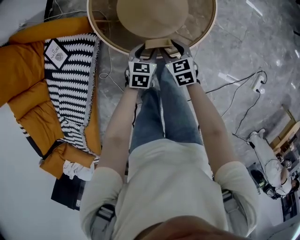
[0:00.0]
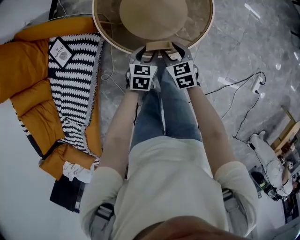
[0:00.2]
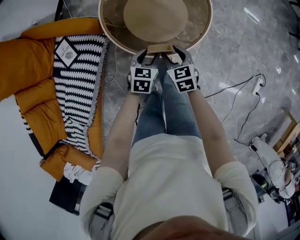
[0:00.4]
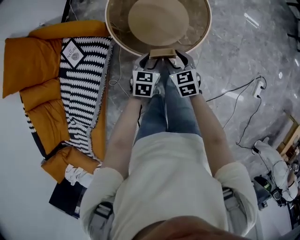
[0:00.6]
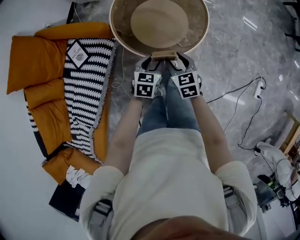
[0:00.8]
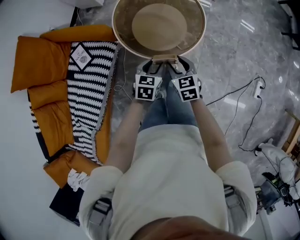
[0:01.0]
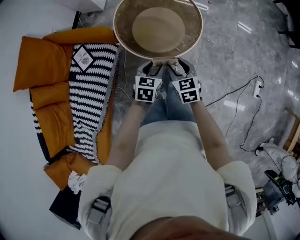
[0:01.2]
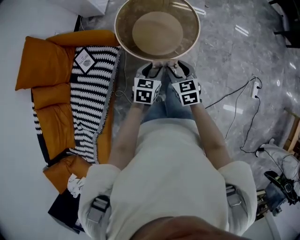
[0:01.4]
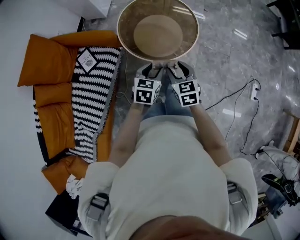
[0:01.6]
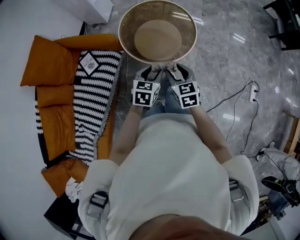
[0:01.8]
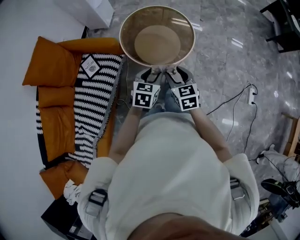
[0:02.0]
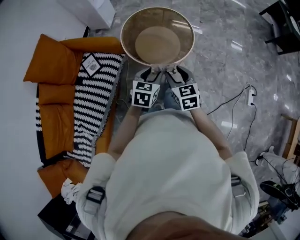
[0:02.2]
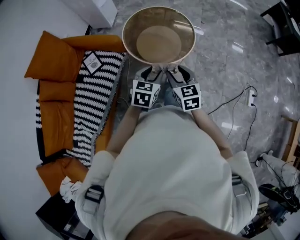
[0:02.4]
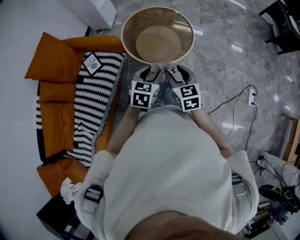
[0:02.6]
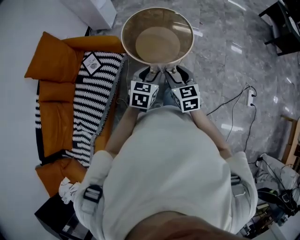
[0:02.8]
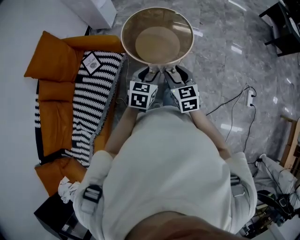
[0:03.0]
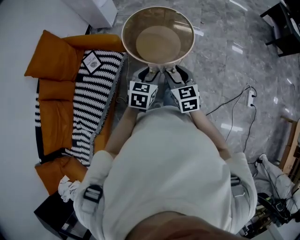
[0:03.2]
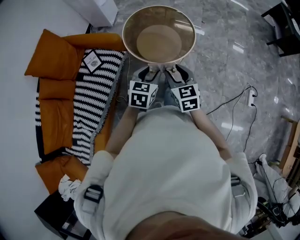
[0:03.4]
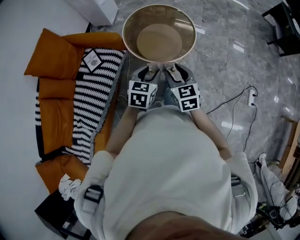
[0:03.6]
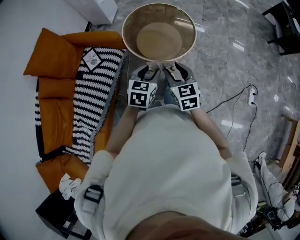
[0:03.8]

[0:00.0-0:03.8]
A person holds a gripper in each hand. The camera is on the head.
0.0 to 1.2 s: Both grippers move upward and backward, some 25 cm.
1.2 to 2.6 s: The two grippers go some 20 cm upward and backward.
2.6 to 3.8 s: Both grippers stay put.

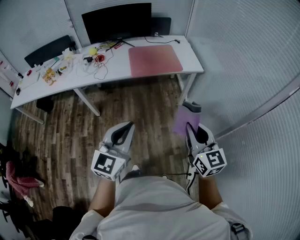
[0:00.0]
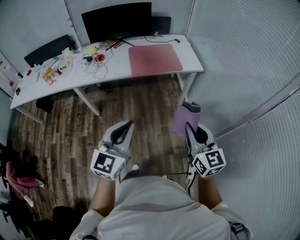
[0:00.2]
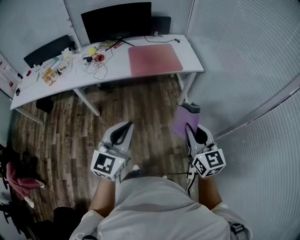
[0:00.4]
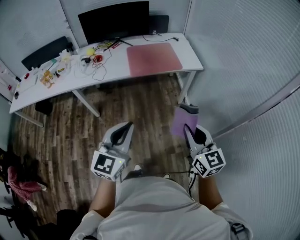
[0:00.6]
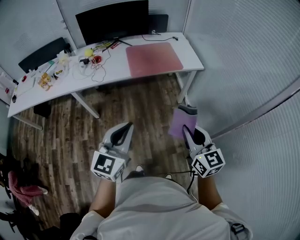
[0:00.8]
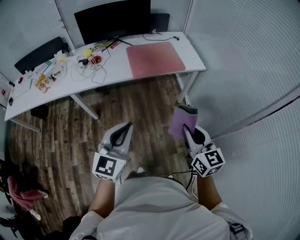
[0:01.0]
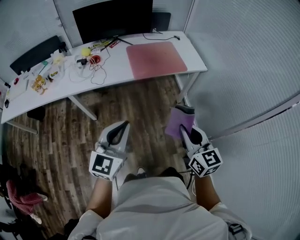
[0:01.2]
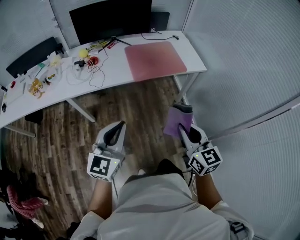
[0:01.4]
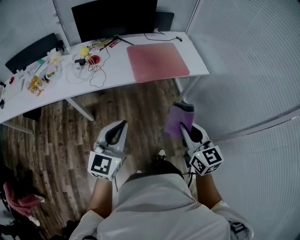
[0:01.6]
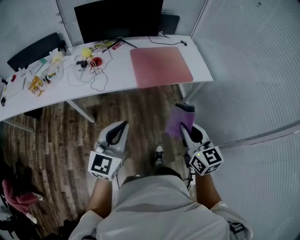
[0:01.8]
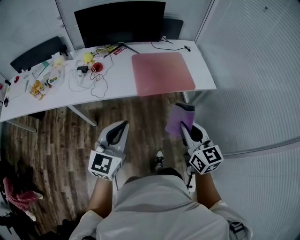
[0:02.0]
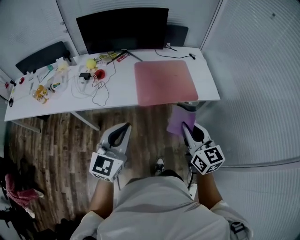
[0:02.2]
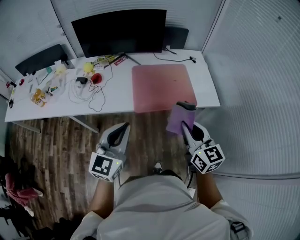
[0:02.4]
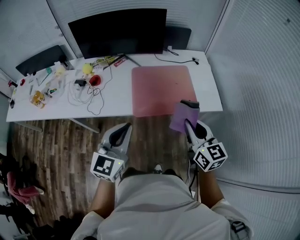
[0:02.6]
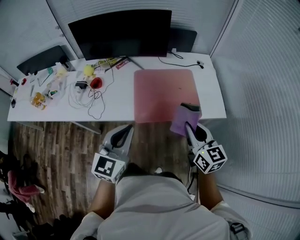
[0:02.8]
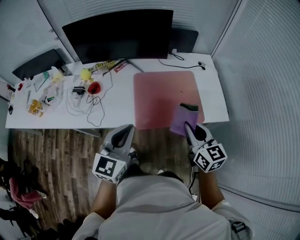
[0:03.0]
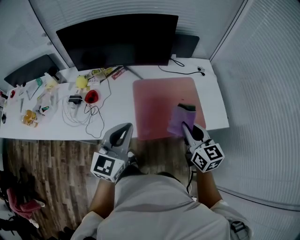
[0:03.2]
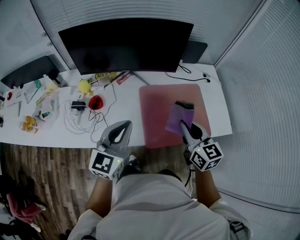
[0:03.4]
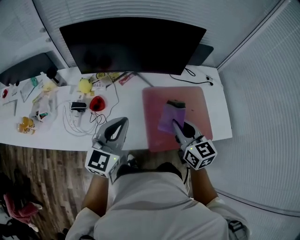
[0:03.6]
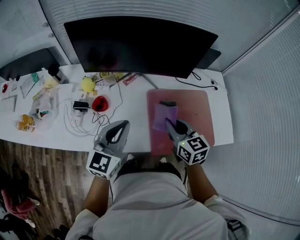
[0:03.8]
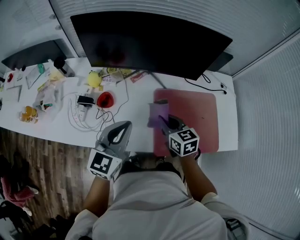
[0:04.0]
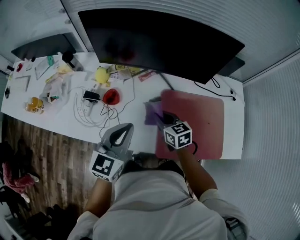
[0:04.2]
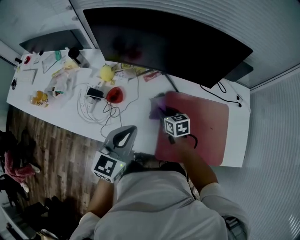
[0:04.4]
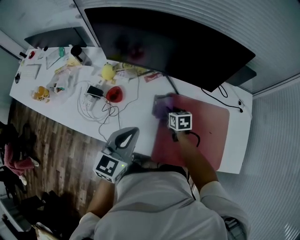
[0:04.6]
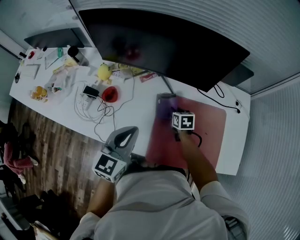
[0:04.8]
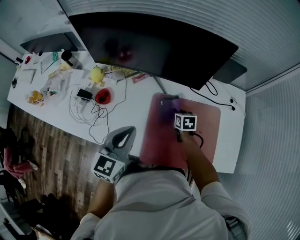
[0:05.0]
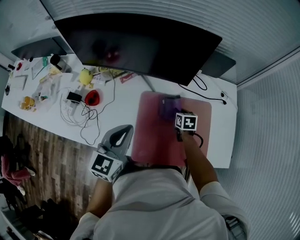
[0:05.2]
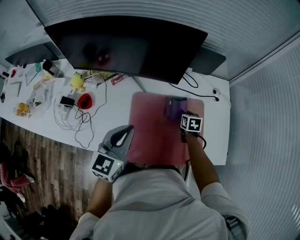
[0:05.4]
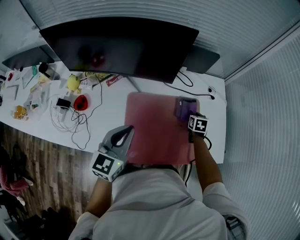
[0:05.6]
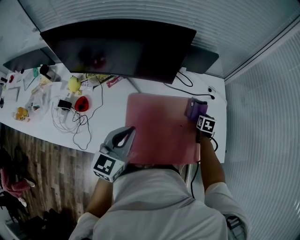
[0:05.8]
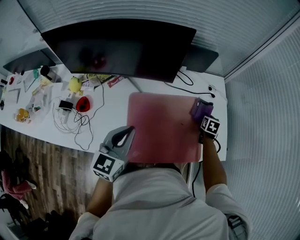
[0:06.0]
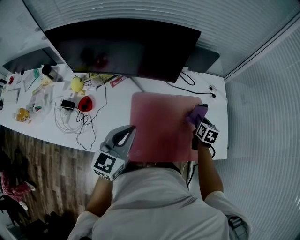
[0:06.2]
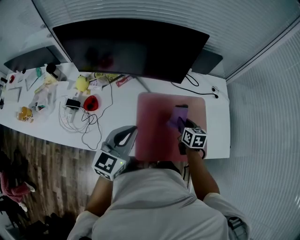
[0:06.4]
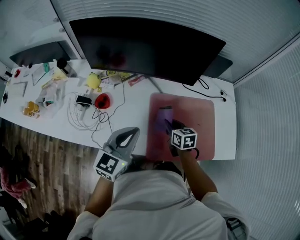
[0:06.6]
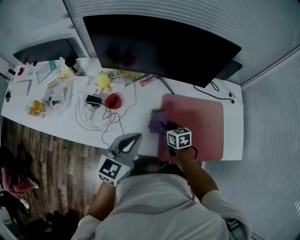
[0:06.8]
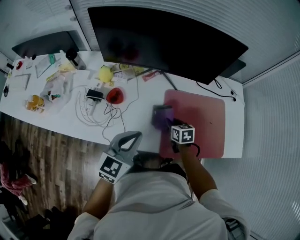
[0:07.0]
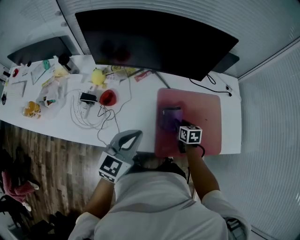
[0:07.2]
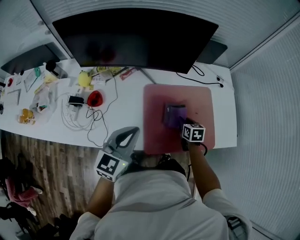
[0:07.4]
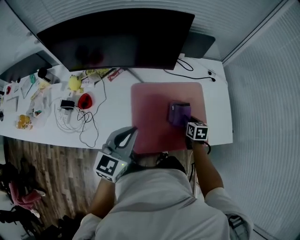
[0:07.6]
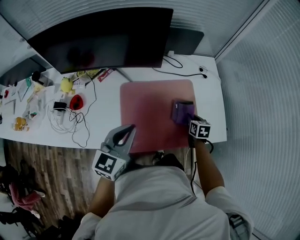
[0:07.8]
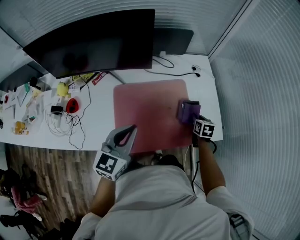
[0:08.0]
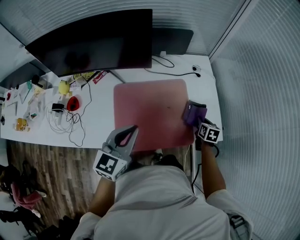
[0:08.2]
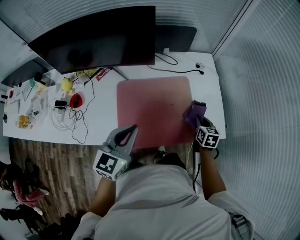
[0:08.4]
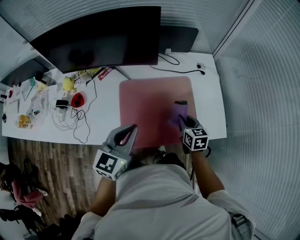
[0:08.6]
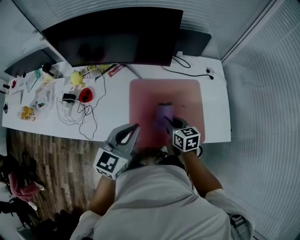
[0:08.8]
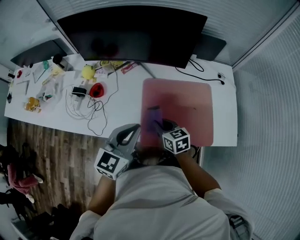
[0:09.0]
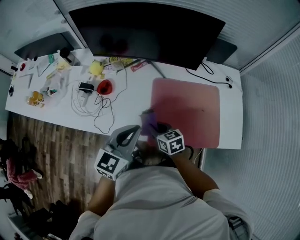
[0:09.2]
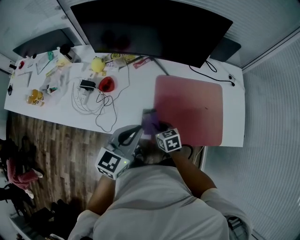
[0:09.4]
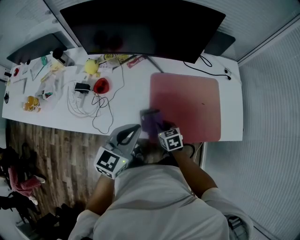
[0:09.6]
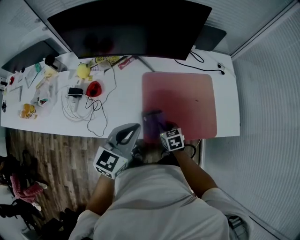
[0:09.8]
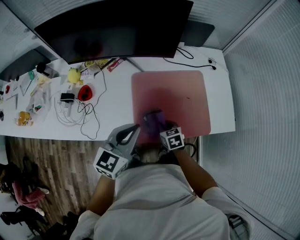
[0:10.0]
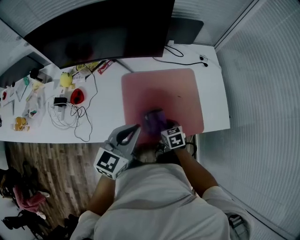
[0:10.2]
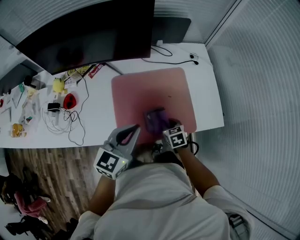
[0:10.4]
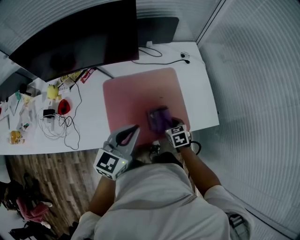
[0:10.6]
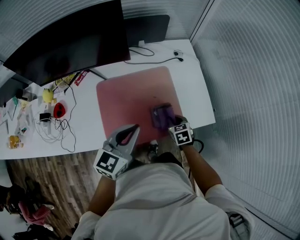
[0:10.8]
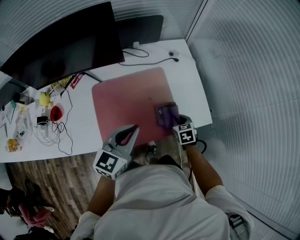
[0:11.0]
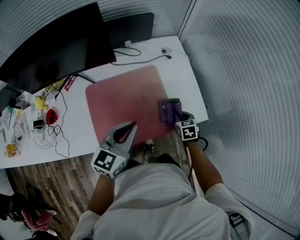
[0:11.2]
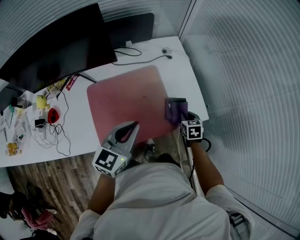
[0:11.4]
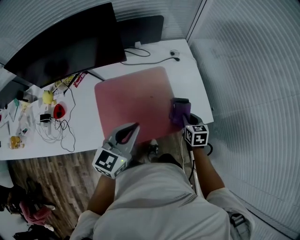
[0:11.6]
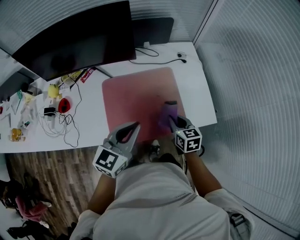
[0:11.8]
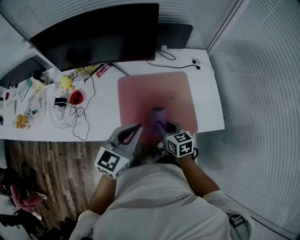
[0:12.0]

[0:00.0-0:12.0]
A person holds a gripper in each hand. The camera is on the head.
0.0 to 1.6 s: Both grippers move to the left and forward, approximately 25 cm.
1.6 to 3.0 s: The two grippers go about 35 cm forward.
3.0 to 4.4 s: The left gripper is displaced forward and to the left by roughly 25 cm, while the right gripper heads forward, to the left and downward, covering approximately 50 cm, and turns by about 30 degrees.
4.4 to 6.0 s: The right gripper moves some 50 cm, and rotates approximately 50 degrees. The left gripper shifts by about 20 cm.
6.0 to 7.6 s: The right gripper goes upward and returns, some 10 cm each way.
7.6 to 9.0 s: The right gripper shifts by roughly 25 cm, and changes its angle by roughly 30 degrees.
9.0 to 10.4 s: The right gripper is displaced to the right and downward by roughly 20 cm, and changes its angle by some 30 degrees. The left gripper heads to the right, covering about 10 cm.
10.4 to 12.0 s: The left gripper moves approximately 10 cm to the right and comes back. Meanwhile the right gripper heads upward, covering roughly 15 cm, travels to the right and back again, some 25 cm each way, and rotates roughly 20 degrees.

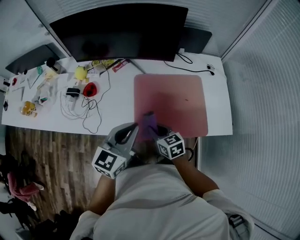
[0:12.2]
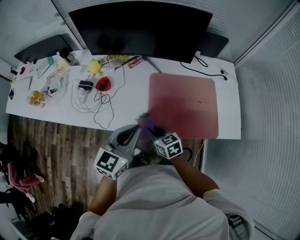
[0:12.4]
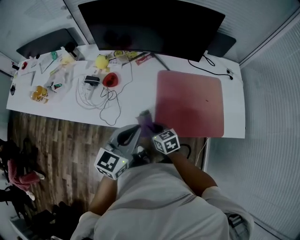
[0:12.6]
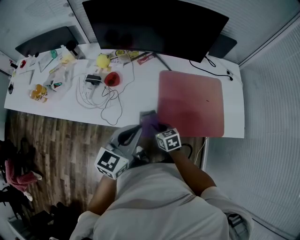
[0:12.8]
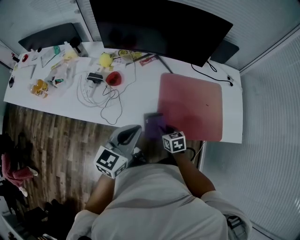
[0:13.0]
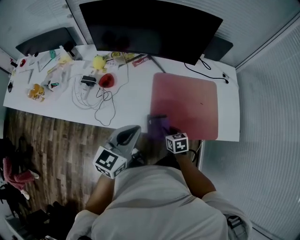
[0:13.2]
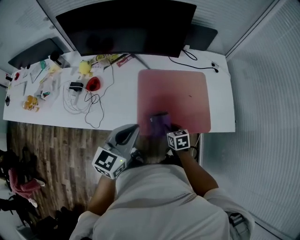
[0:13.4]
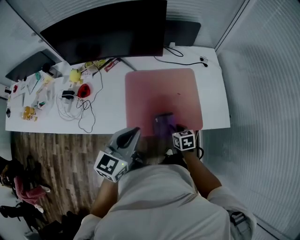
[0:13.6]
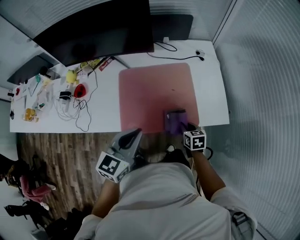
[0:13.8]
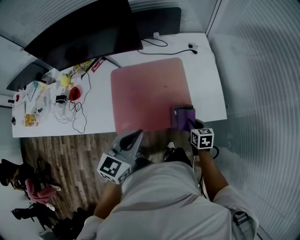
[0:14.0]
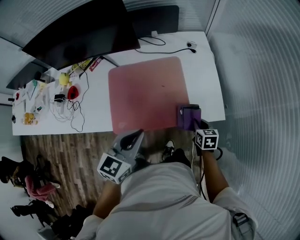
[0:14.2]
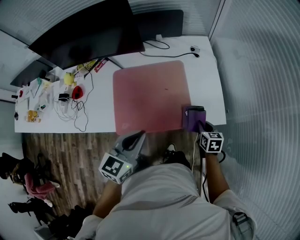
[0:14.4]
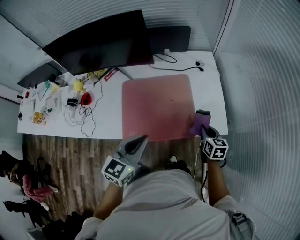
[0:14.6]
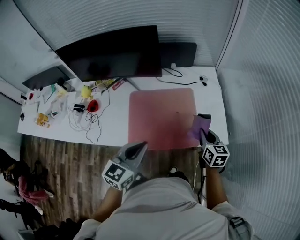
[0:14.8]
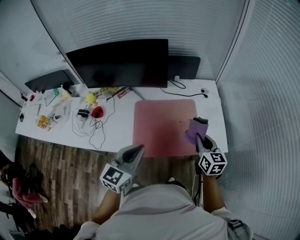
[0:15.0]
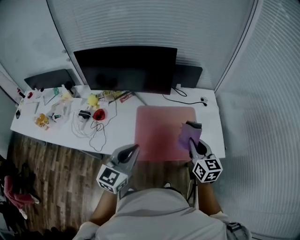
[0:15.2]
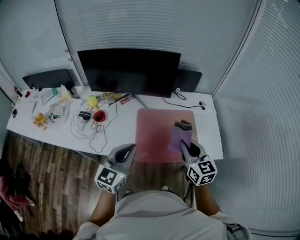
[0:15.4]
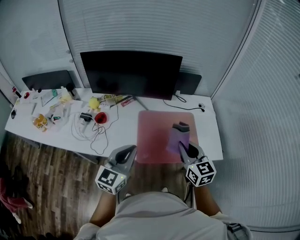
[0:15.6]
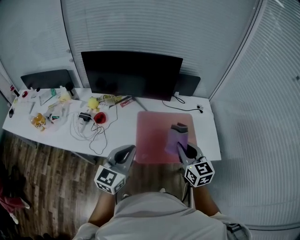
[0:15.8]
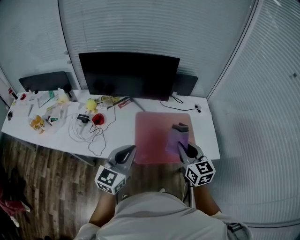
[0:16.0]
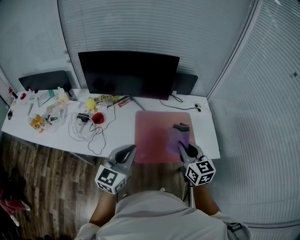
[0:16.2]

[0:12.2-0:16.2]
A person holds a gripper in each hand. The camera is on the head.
12.2 to 13.6 s: The left gripper goes to the left and returns, some 15 cm each way. The right gripper travels to the right and downward by roughly 20 cm.
13.6 to 14.8 s: The left gripper shifts approximately 10 cm to the right. The right gripper travels to the right and upward by some 25 cm, and turns by roughly 30 degrees.
14.8 to 16.2 s: The right gripper heads to the left, upward and backward, covering roughly 30 cm, and rotates about 20 degrees, while the left gripper heads to the left and upward, covering approximately 20 cm.

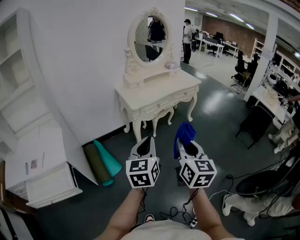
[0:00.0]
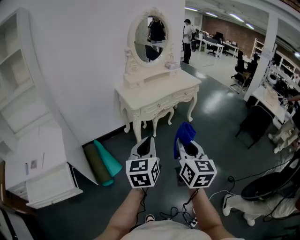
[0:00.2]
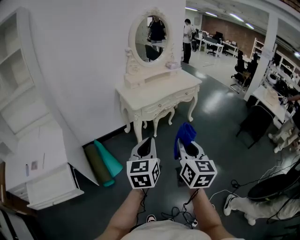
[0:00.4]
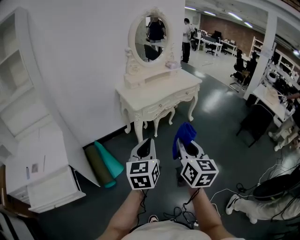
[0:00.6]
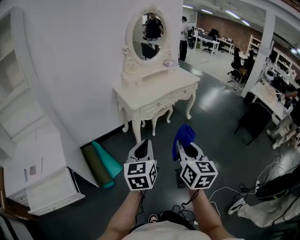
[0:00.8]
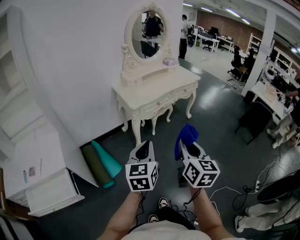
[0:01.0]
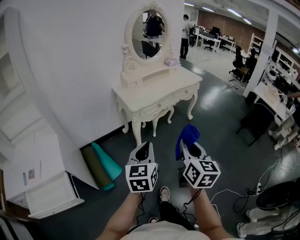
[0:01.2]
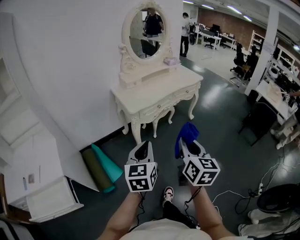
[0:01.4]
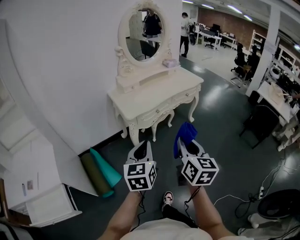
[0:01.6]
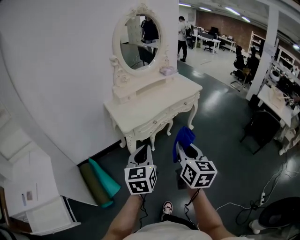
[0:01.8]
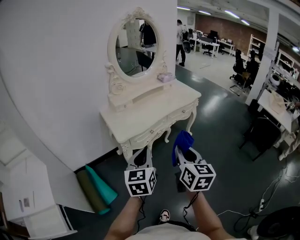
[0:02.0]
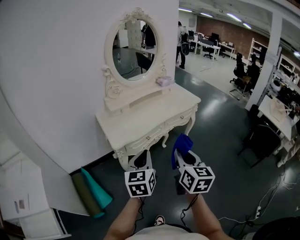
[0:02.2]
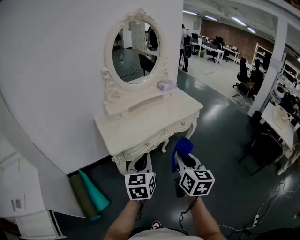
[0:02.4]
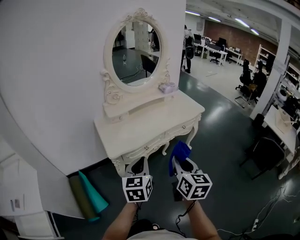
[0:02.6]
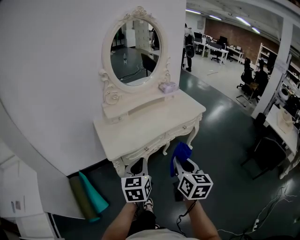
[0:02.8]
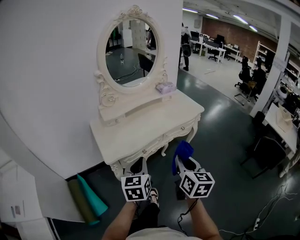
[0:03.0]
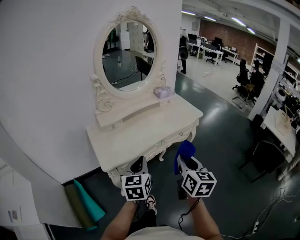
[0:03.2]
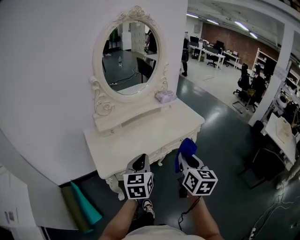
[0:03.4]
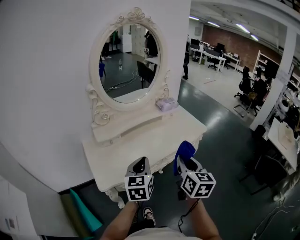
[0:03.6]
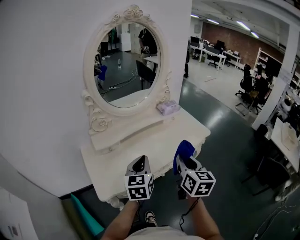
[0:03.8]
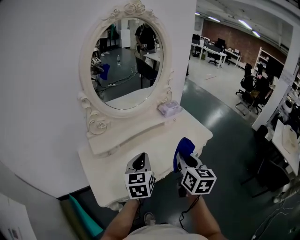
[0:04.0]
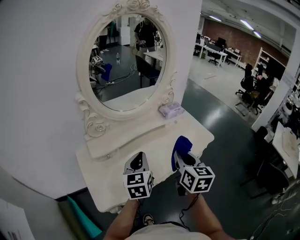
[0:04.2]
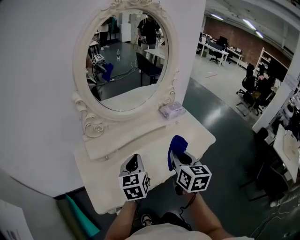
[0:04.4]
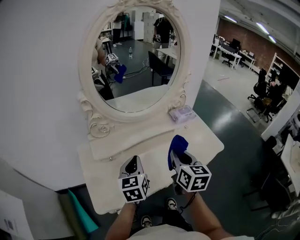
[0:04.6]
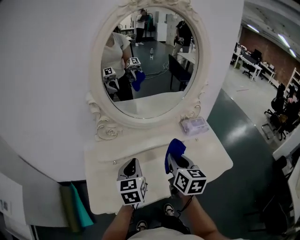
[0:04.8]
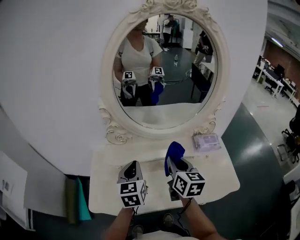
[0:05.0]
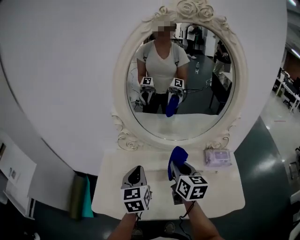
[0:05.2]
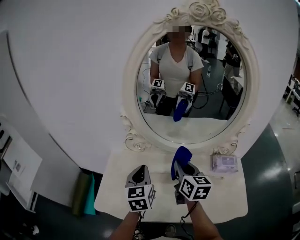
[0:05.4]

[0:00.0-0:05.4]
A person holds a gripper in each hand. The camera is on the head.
0.0 to 1.4 s: The two grippers go approximately 10 cm forward.
1.4 to 2.8 s: Both grippers move forward, roughly 30 cm.
2.8 to 4.0 s: Both grippers travel together forward, about 30 cm.
4.0 to 5.4 s: The right gripper changes place by about 30 cm, and changes its angle by some 40 degrees, while the left gripper moves approximately 20 cm, and changes its angle by about 40 degrees.
